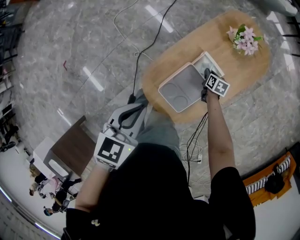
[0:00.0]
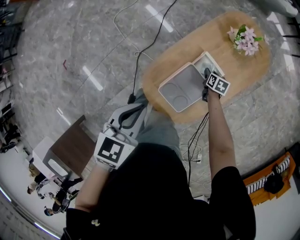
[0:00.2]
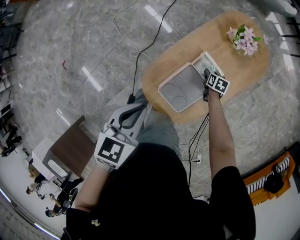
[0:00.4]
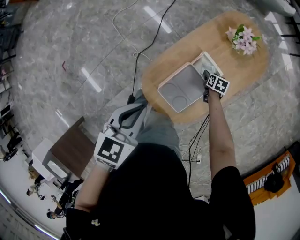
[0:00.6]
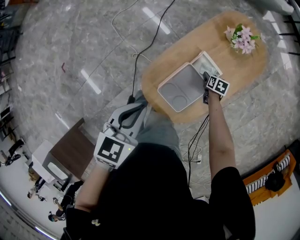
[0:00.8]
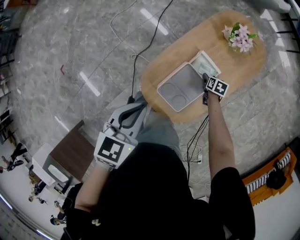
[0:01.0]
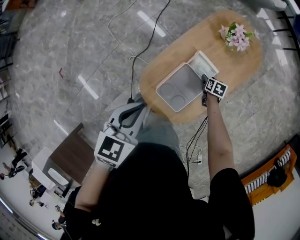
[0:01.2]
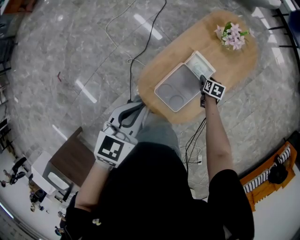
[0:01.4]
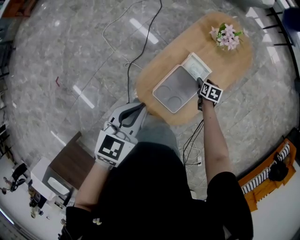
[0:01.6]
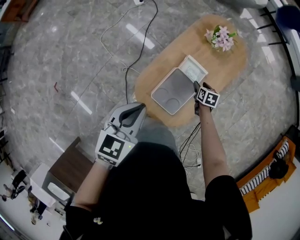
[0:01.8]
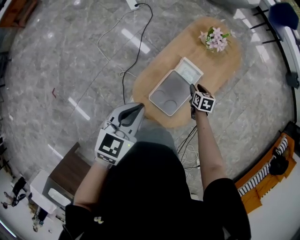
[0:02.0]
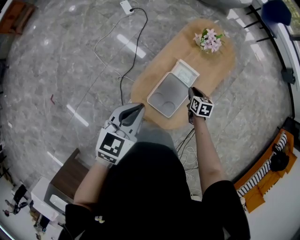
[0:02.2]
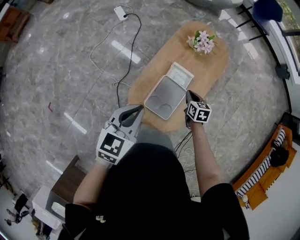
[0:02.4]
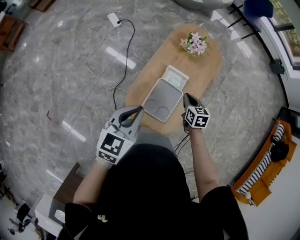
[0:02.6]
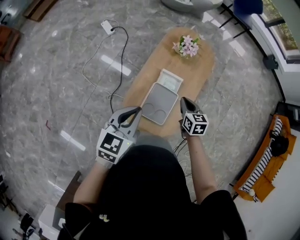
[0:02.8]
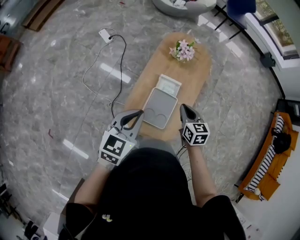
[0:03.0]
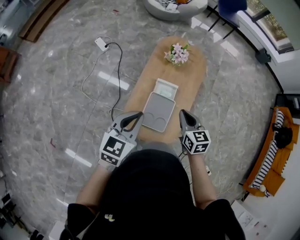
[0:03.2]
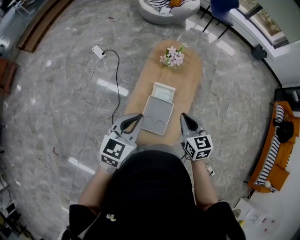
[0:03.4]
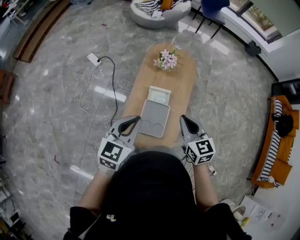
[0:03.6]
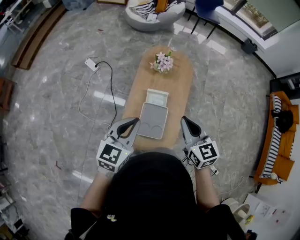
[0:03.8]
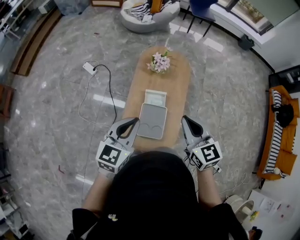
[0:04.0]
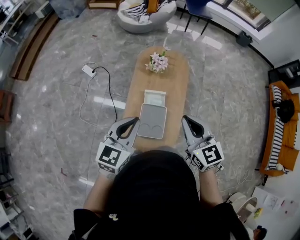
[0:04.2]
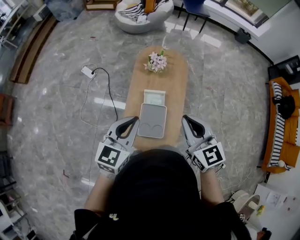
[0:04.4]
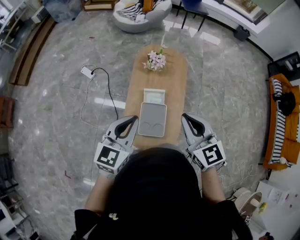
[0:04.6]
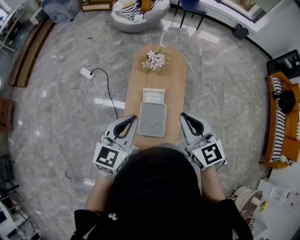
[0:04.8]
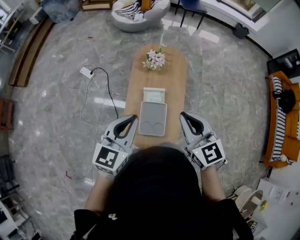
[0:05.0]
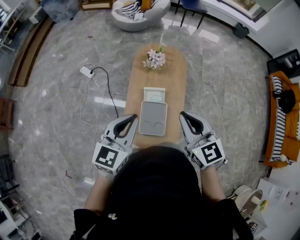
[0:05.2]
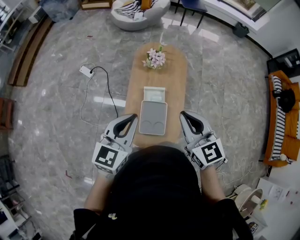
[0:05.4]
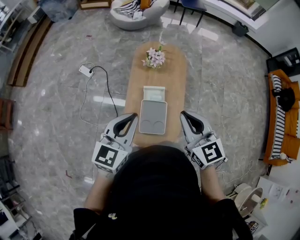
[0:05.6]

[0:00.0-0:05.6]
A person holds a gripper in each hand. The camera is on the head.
0:00.0 to 0:01.4: The right gripper changes place by roughly 5 cm, and opens.
0:01.4 to 0:02.8: The left gripper heads upward, covering some 5 cm, and changes its angle by about 20 degrees. Meanwhile the right gripper moves upward, some 30 cm, changes its angle by roughly 30 degrees, and closes its fingers.
0:02.8 to 0:04.2: The right gripper is displaced upward by some 25 cm, and rotates approximately 30 degrees. The left gripper goes roughly 10 cm upward and to the right.
0:04.2 to 0:05.6: There are only small adjustments of the grippers.

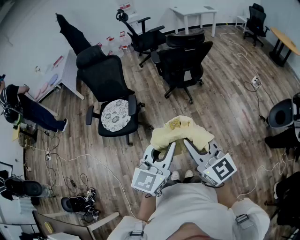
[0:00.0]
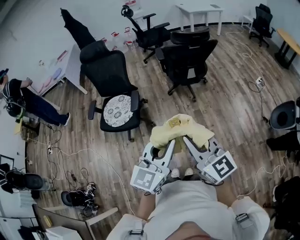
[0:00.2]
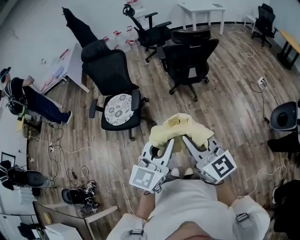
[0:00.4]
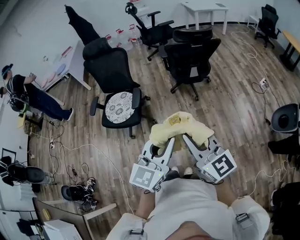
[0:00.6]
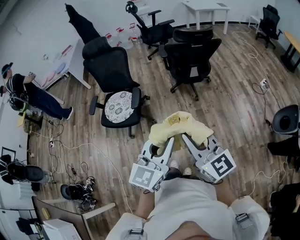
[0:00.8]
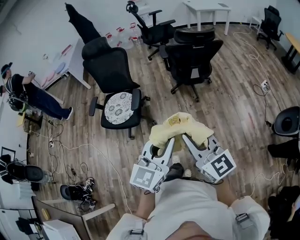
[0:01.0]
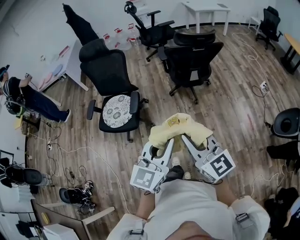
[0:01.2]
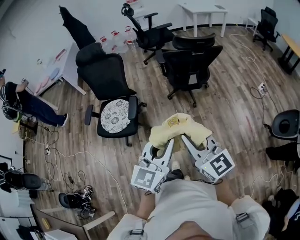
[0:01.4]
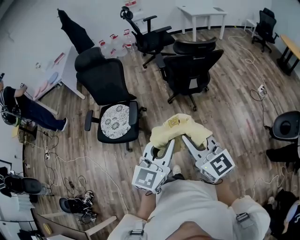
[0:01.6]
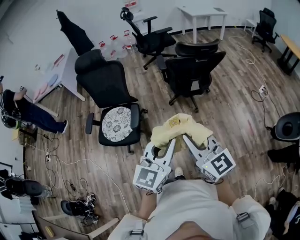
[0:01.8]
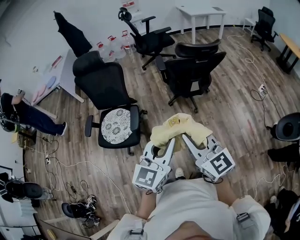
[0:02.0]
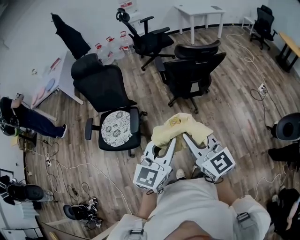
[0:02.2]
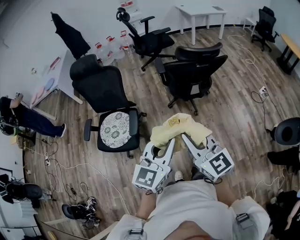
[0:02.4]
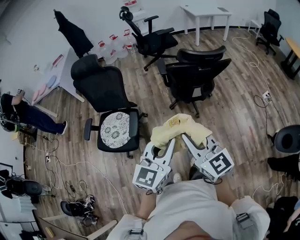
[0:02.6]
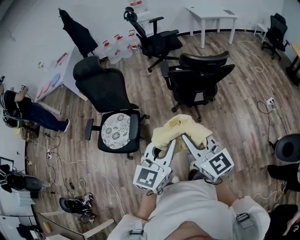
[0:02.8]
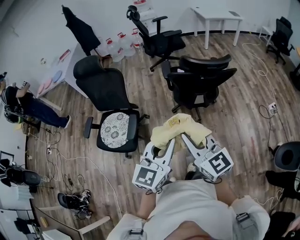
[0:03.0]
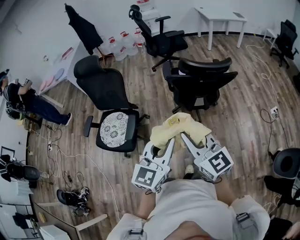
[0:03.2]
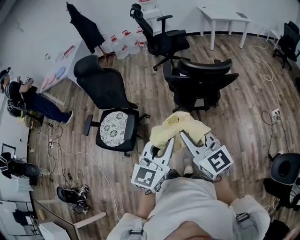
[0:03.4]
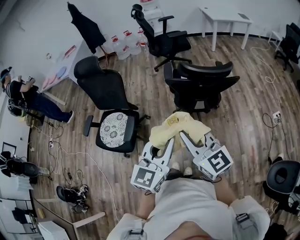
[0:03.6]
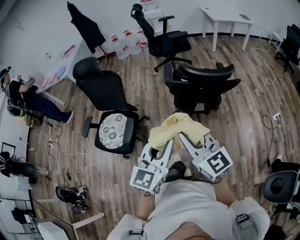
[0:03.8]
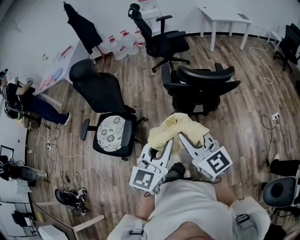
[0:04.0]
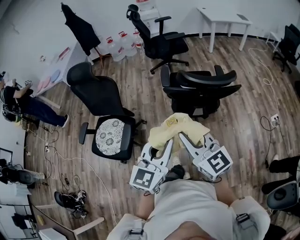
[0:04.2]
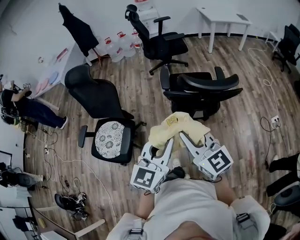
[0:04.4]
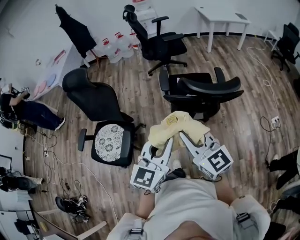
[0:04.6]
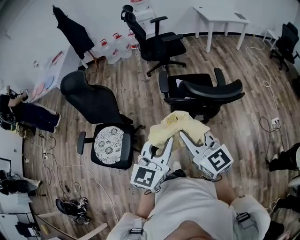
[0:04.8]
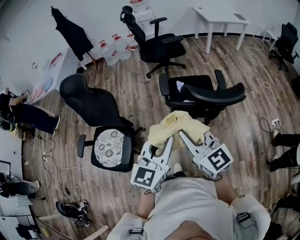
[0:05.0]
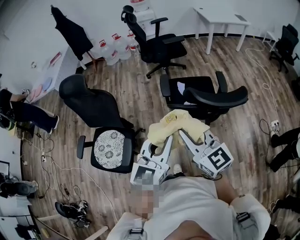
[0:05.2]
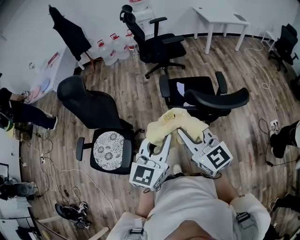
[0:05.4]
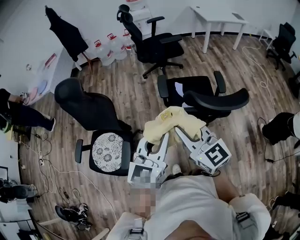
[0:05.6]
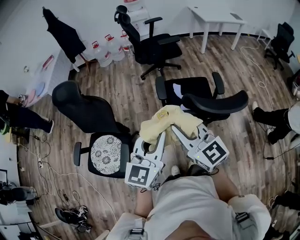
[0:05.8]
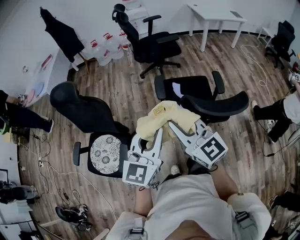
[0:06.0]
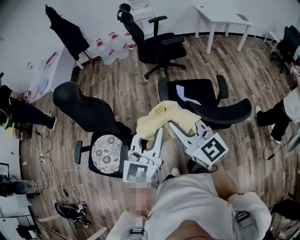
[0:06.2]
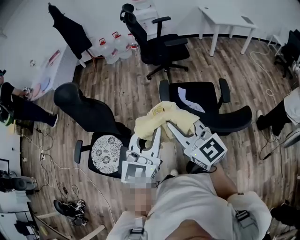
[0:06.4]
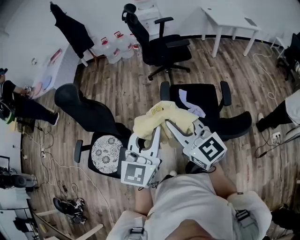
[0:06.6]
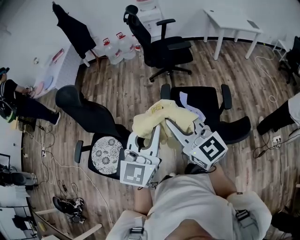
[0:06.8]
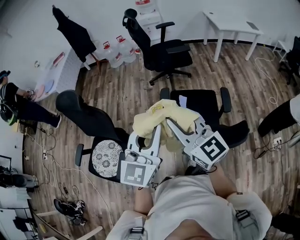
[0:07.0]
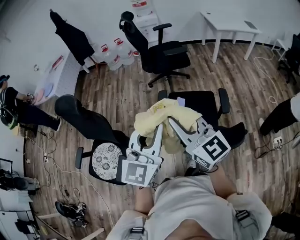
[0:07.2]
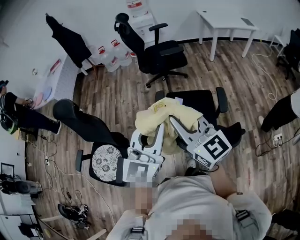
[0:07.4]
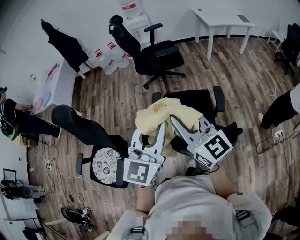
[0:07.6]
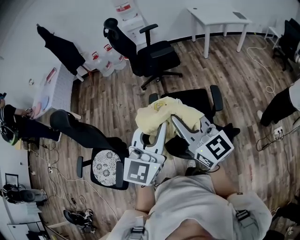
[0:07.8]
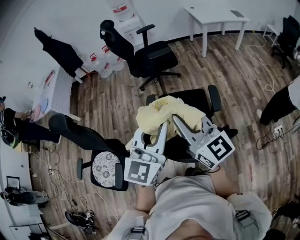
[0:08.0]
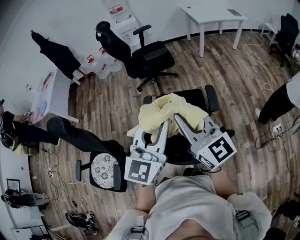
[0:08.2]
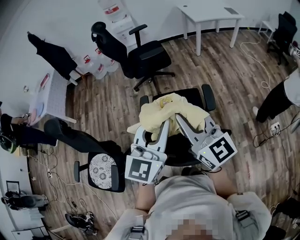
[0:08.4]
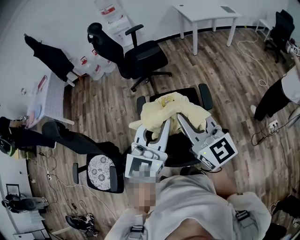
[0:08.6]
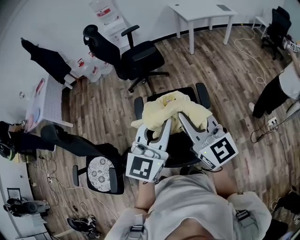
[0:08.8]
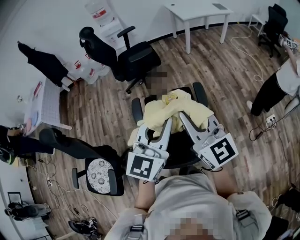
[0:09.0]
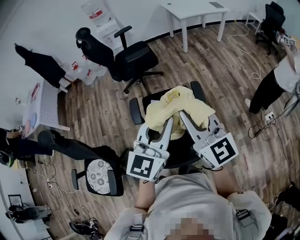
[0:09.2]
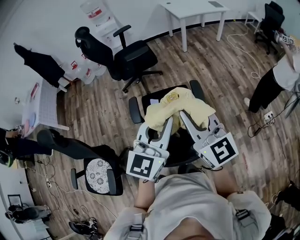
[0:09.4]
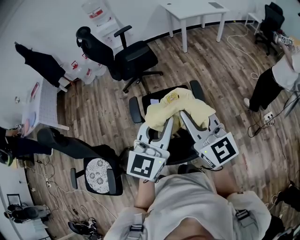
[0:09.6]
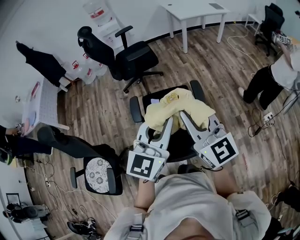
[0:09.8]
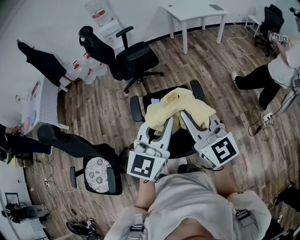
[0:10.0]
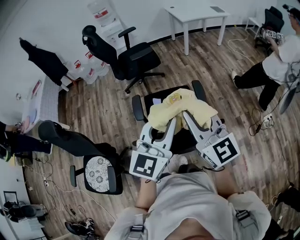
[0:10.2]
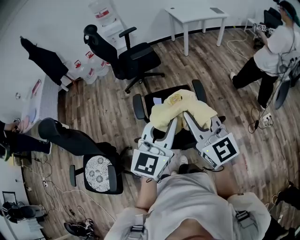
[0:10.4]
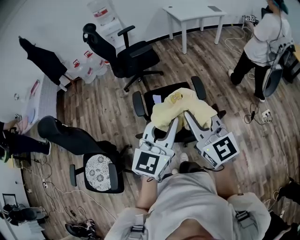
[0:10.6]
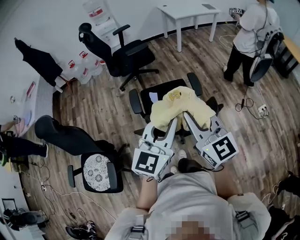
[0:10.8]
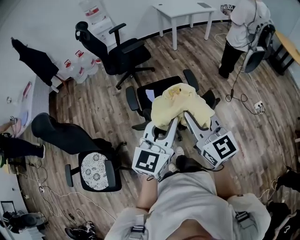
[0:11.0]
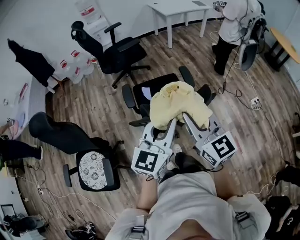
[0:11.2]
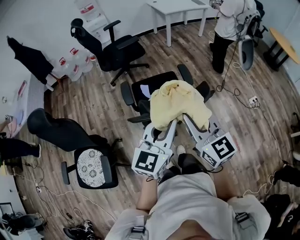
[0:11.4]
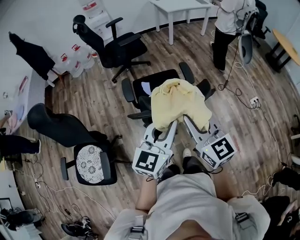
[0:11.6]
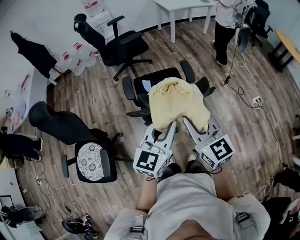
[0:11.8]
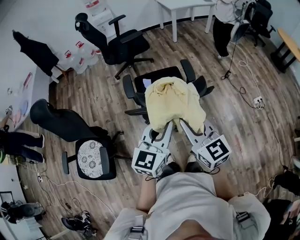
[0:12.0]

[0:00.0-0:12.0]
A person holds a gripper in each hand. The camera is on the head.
0:00.0 to 0:01.6: Both grippers move forward, roughly 15 cm.
0:01.6 to 0:03.0: The two grippers go about 20 cm forward.
0:03.0 to 0:04.4: Both grippers move forward, about 15 cm.
0:04.4 to 0:06.0: The grippers both shift forward by some 15 cm.
0:06.0 to 0:07.6: Both grippers move to the right and forward, some 20 cm.
0:07.6 to 0:09.0: The two grippers go roughly 15 cm to the right.
0:09.0 to 0:10.4: Both grippers move backward, about 5 cm.
0:10.4 to 0:12.0: Both grippers move backward and downward, approximately 15 cm.

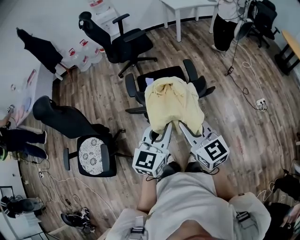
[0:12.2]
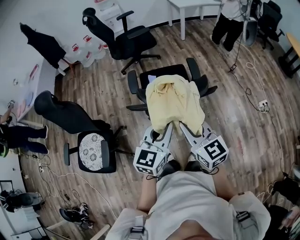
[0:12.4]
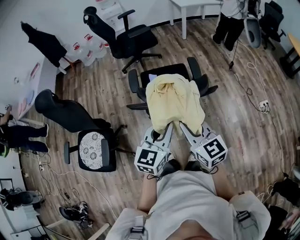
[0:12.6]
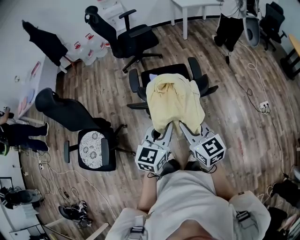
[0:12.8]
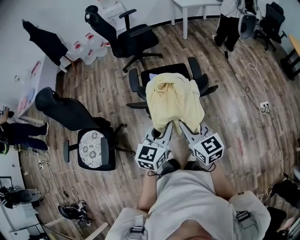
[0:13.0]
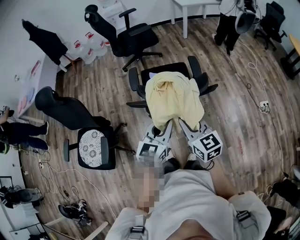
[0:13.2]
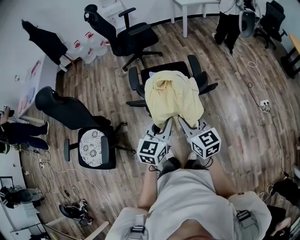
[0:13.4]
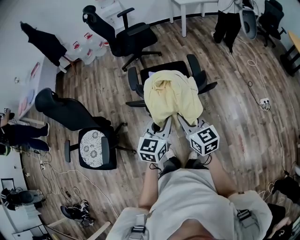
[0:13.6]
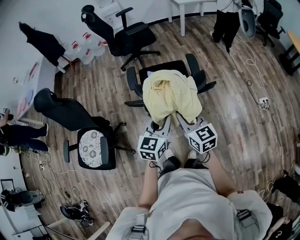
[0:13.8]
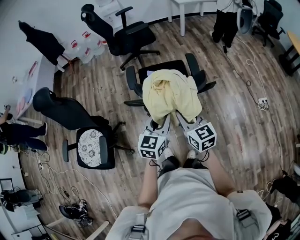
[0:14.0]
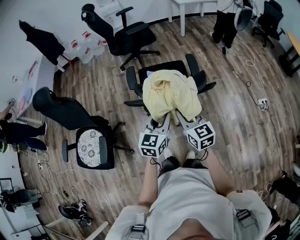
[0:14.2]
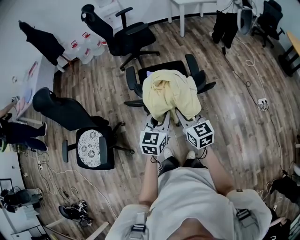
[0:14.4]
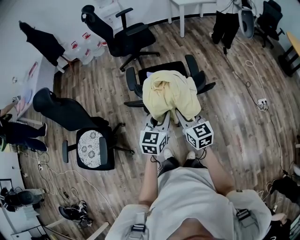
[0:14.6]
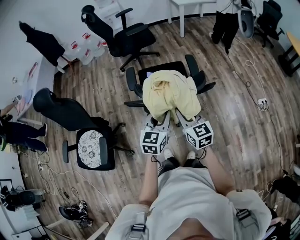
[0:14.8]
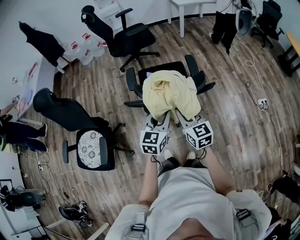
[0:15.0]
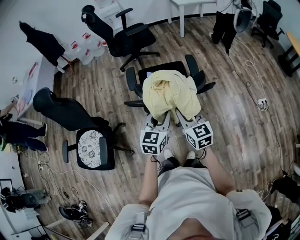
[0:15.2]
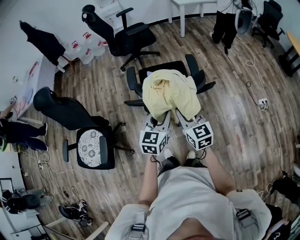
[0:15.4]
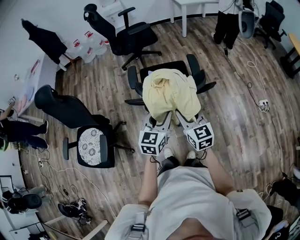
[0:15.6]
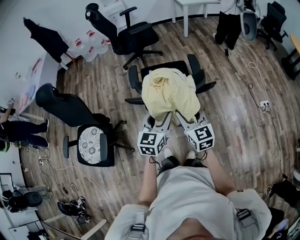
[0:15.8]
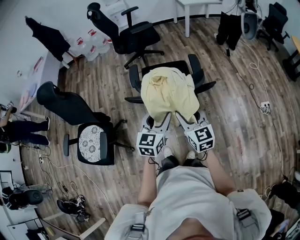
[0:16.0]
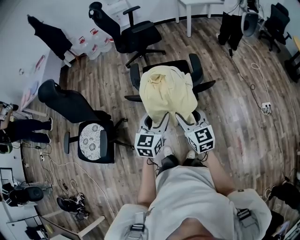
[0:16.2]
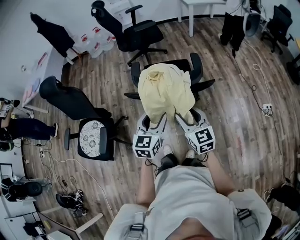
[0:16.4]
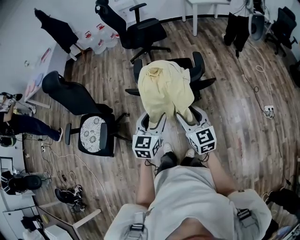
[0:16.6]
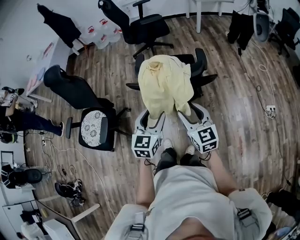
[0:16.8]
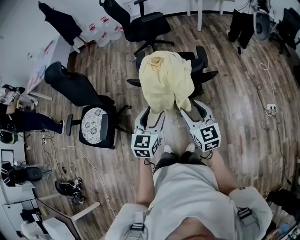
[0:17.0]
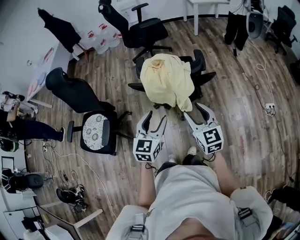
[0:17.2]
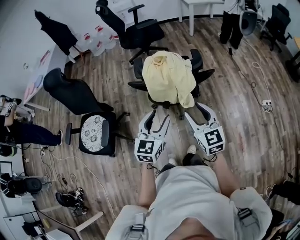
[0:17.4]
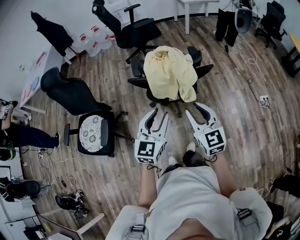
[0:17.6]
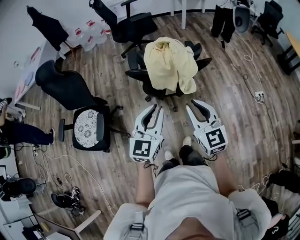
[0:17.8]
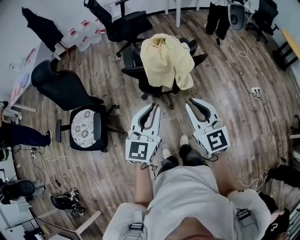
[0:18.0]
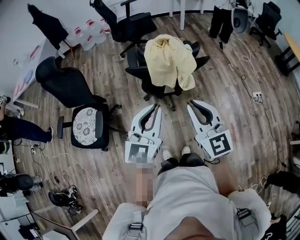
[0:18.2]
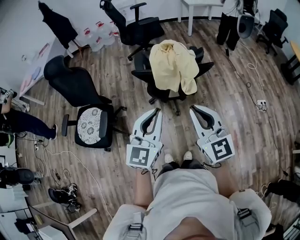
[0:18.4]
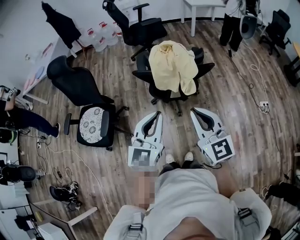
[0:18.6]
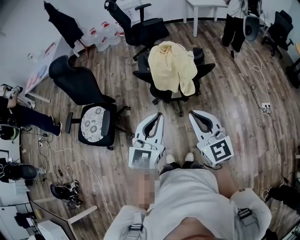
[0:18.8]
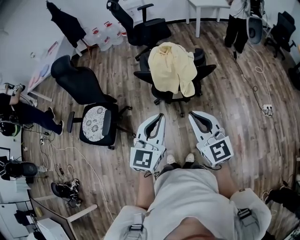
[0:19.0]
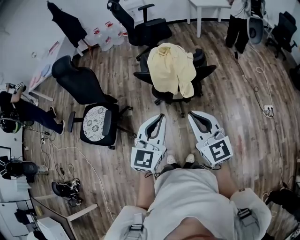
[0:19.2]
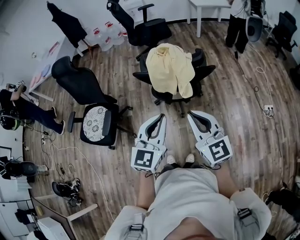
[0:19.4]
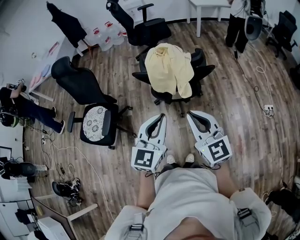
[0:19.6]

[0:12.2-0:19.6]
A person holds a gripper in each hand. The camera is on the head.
0:12.2 to 0:13.6: The grippers both shift downward by roughly 10 cm.
0:13.6 to 0:15.2: The grippers move only a little.
0:15.2 to 0:16.6: The grippers both shift backward by approximately 5 cm. The right gripper opens its fingers. The left gripper opens.
0:16.6 to 0:18.2: The grippers both shift backward and upward by about 20 cm. The left gripper closes up, while the right gripper closes its fingers.
0:18.2 to 0:19.6: The left gripper shifts by some 5 cm.
